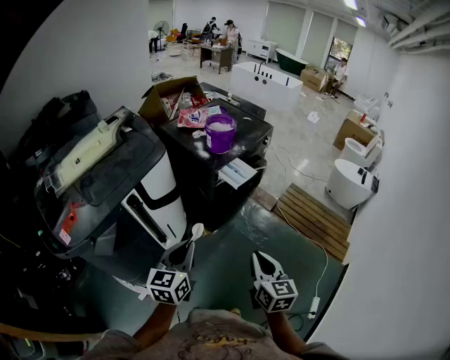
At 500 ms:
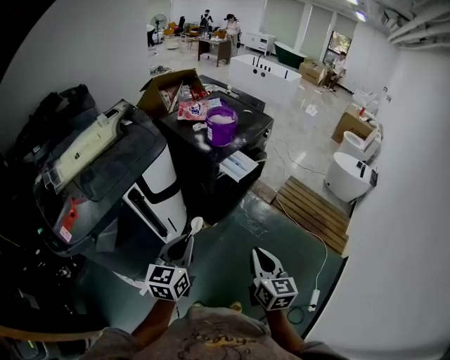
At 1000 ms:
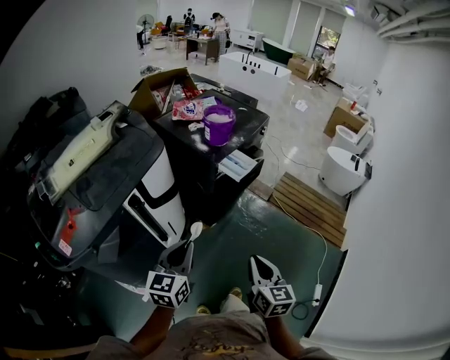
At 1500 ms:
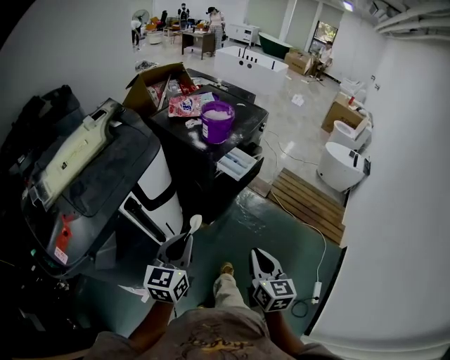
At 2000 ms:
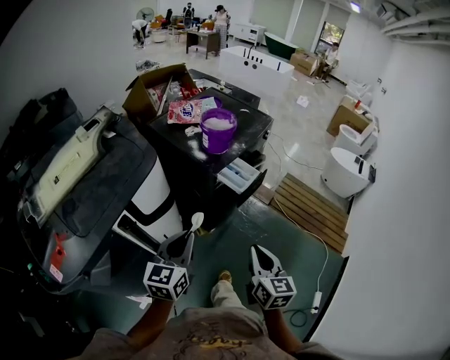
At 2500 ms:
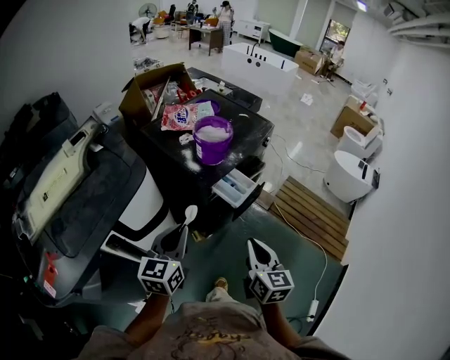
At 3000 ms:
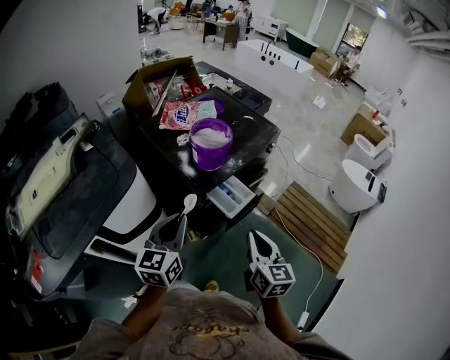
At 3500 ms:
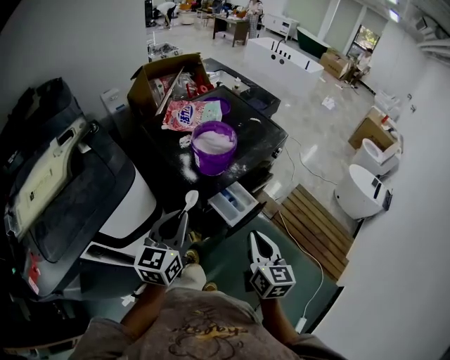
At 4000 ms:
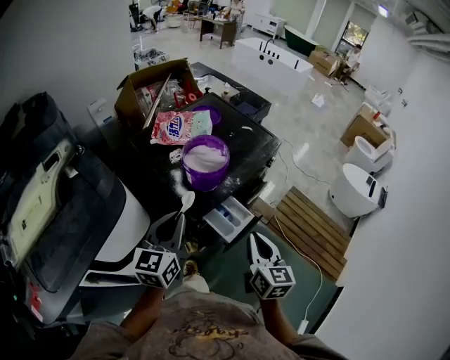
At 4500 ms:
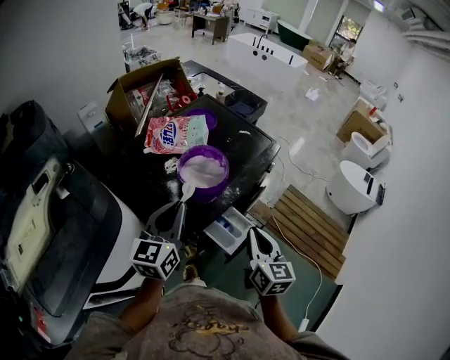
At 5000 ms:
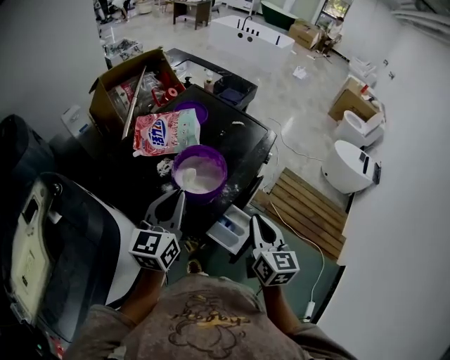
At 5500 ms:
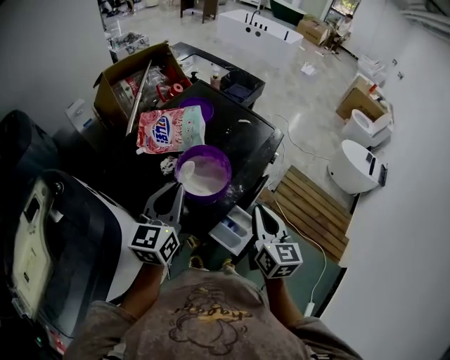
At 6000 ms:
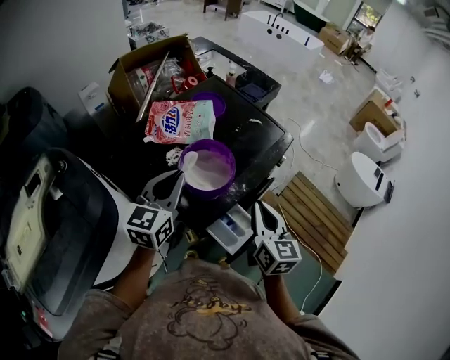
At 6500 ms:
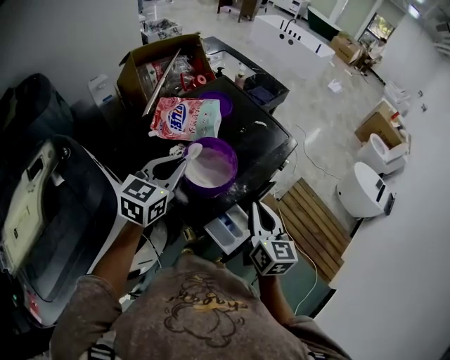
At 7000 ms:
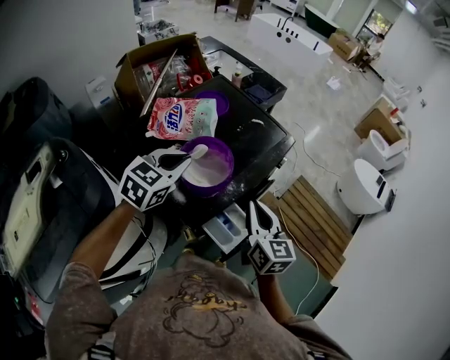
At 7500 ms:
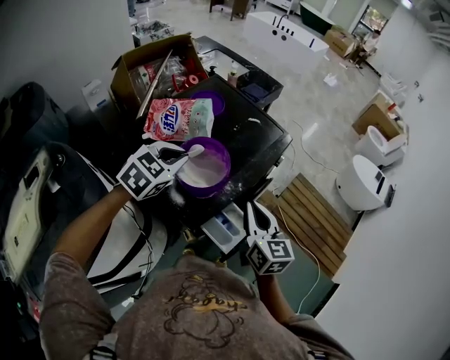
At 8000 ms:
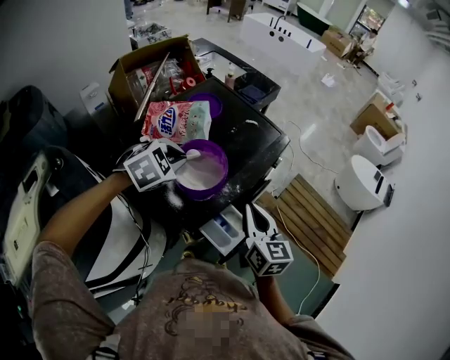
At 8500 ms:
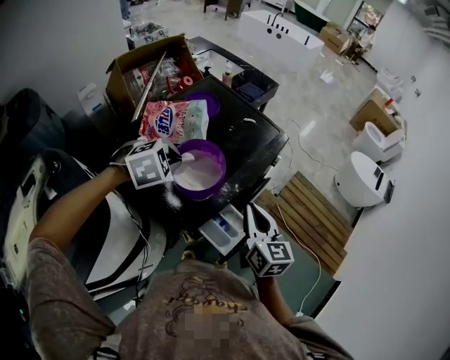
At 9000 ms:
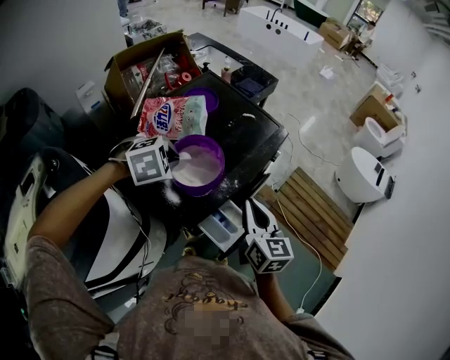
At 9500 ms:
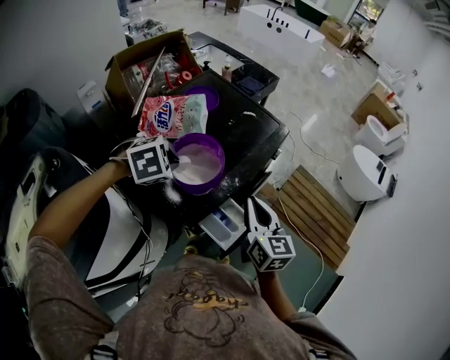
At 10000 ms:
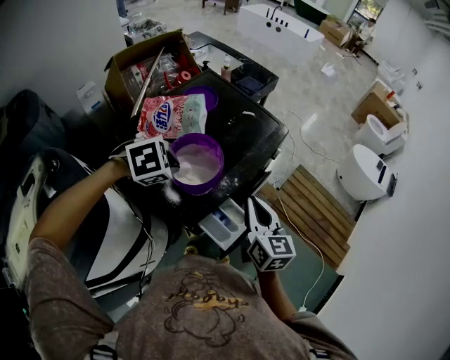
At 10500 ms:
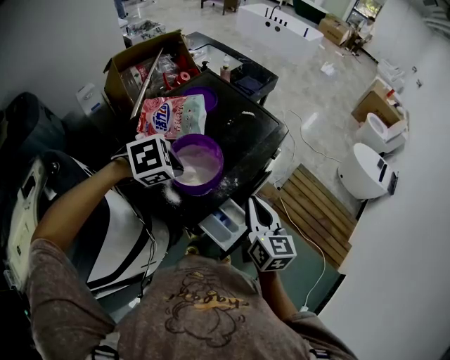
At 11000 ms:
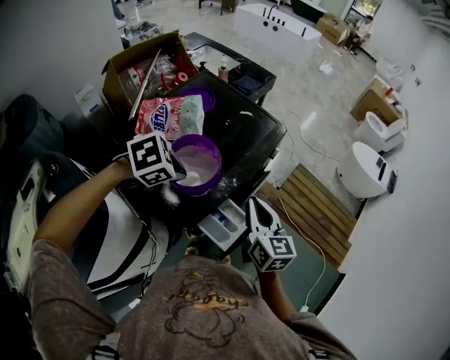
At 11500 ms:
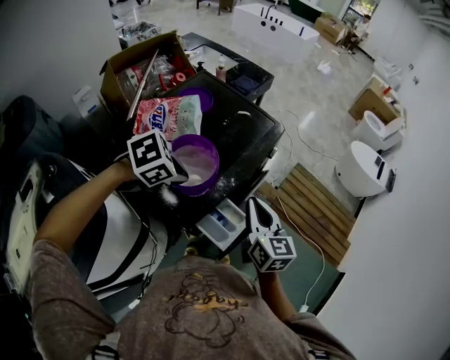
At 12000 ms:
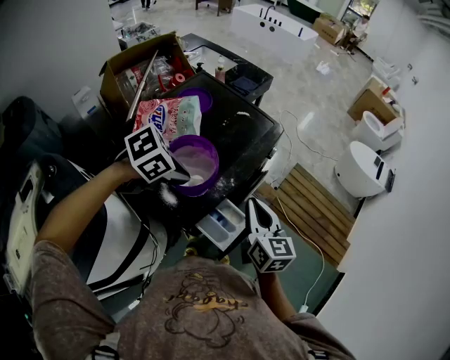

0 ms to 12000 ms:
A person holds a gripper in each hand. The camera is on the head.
0 ms to 2000 ms: The two grippers go roughly 10 cm forward.
2000 ms to 4000 ms: The two grippers go approximately 30 cm forward.
4000 ms to 6000 ms: Both grippers travel together forward, roughly 15 cm.
6000 ms to 8000 ms: The left gripper goes some 5 cm forward, and tilts its fingers approximately 40 degrees downward.
8000 ms to 10000 ms: The left gripper rotates about 20 degrees.
10000 ms to 12000 ms: The left gripper travels to the right by roughly 5 cm, and rotates some 30 degrees.

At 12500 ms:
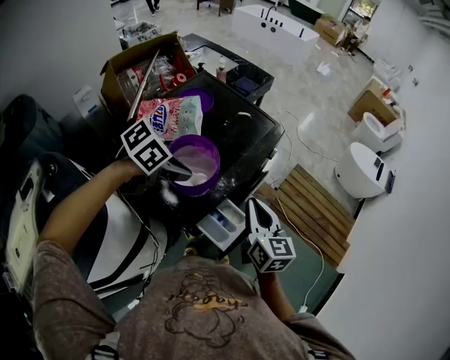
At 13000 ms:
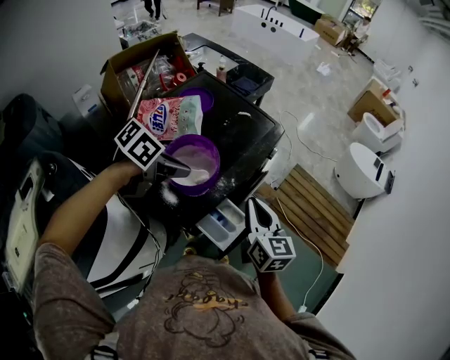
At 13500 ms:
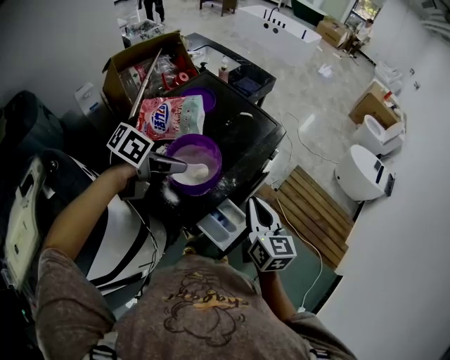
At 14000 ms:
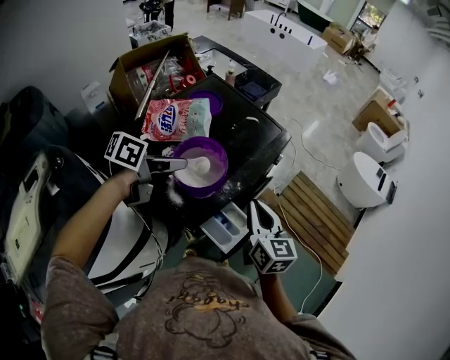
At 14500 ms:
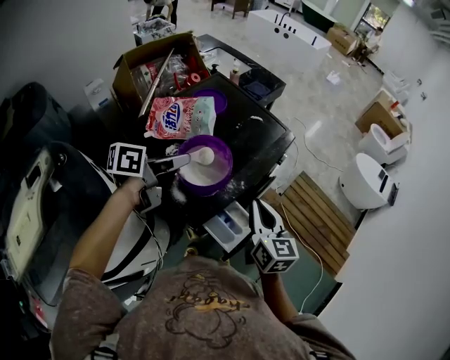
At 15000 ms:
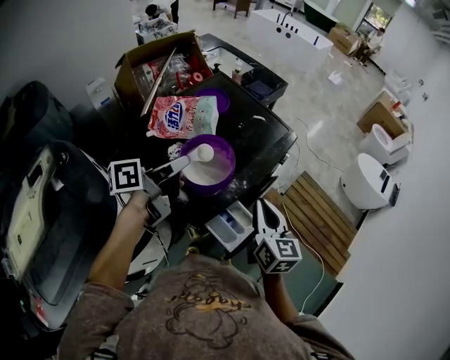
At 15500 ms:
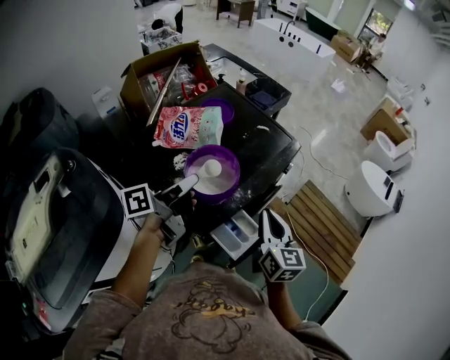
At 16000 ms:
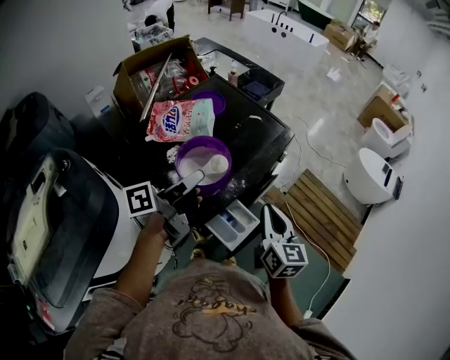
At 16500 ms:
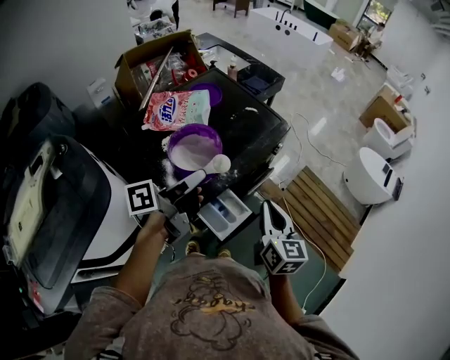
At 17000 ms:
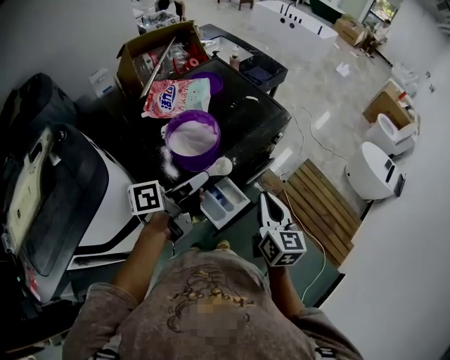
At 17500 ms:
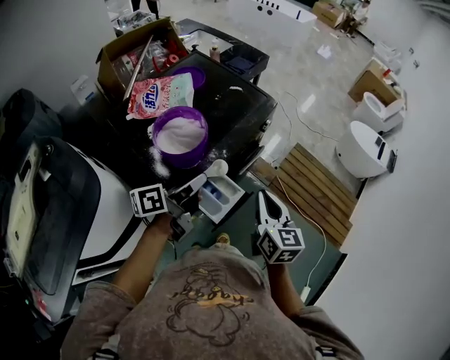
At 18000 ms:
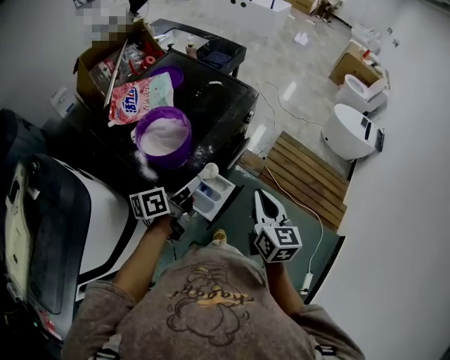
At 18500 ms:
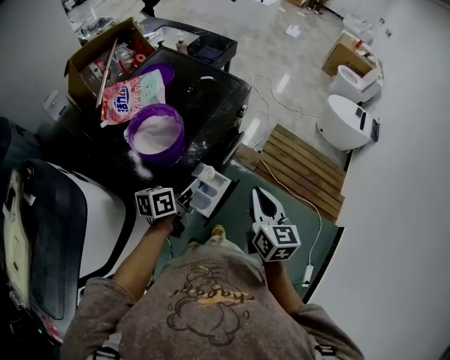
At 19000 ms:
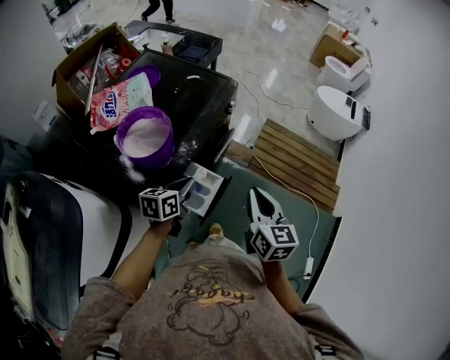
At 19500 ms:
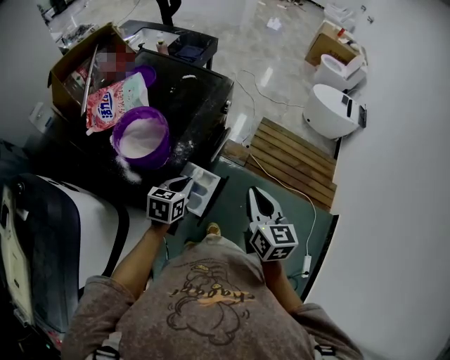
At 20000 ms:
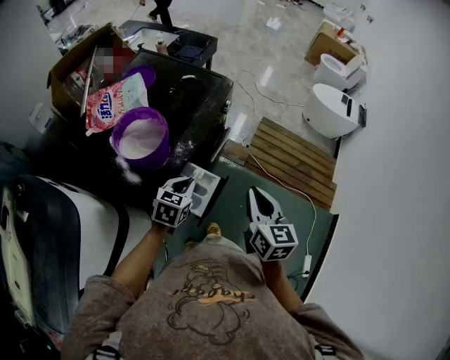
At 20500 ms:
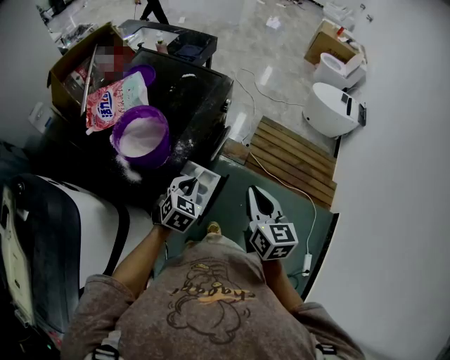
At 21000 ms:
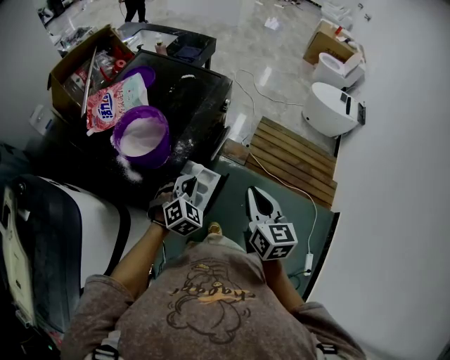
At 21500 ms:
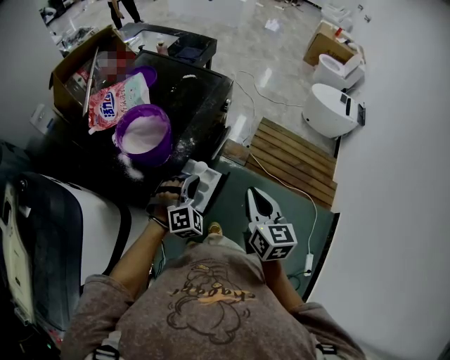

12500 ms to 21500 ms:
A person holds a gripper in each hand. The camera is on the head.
12500 ms to 14500 ms: The left gripper is displaced to the left by about 5 cm, and points its fingers about 30 degrees further upward.
14500 ms to 17000 ms: The right gripper goes some 10 cm to the right; the left gripper heads to the right and backward, covering some 15 cm.
17000 ms to 19500 ms: The left gripper goes roughly 15 cm downward, and rolls clockwise, seen from behind, by about 50 degrees; the right gripper moves to the right, roughly 10 cm.
19500 ms to 21500 ms: The left gripper rotates around the line of its fingers by some 70 degrees, clockwise from behind.

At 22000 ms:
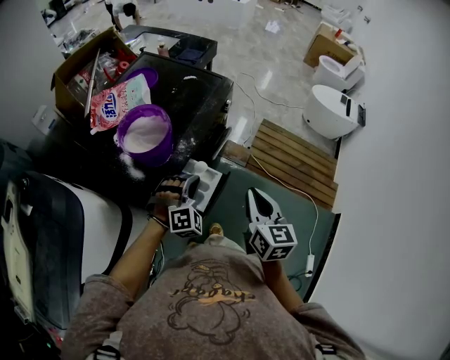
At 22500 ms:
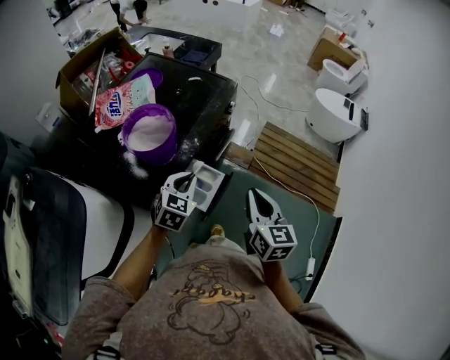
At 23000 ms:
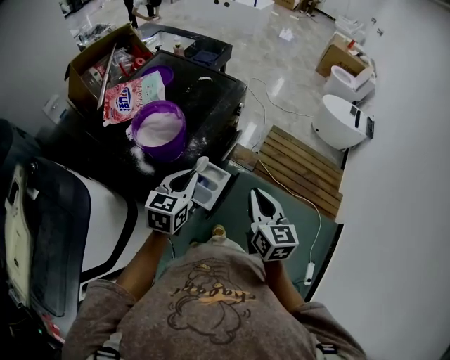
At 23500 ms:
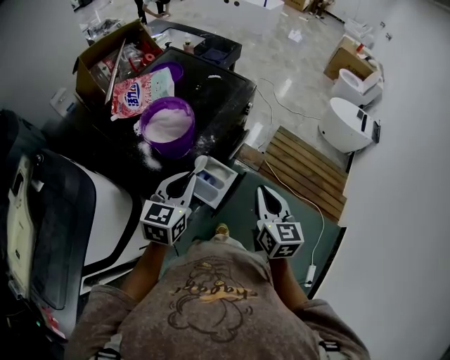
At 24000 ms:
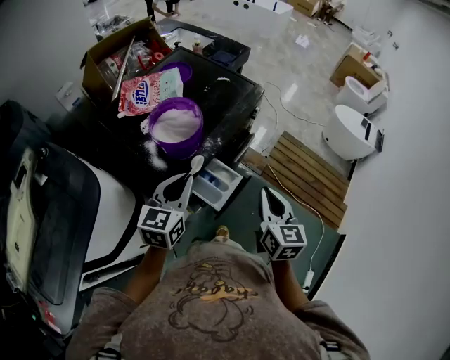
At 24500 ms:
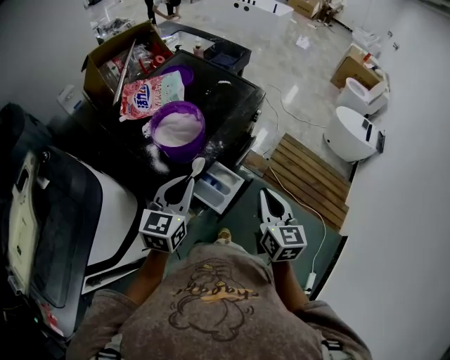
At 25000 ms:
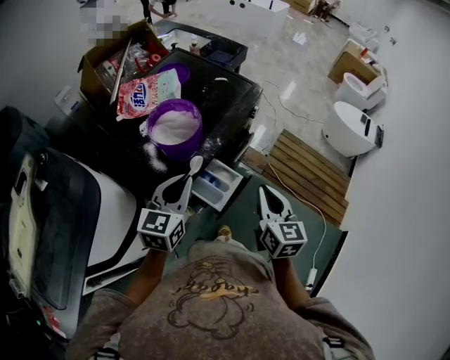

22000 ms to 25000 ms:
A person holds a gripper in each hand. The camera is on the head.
22000 ms to 23500 ms: The left gripper moves upward and to the left, some 15 cm, and rolls counterclockwise, seen from behind, by some 70 degrees.
23500 ms to 25000 ms: The grippers stay close to where they were, moving slightly.

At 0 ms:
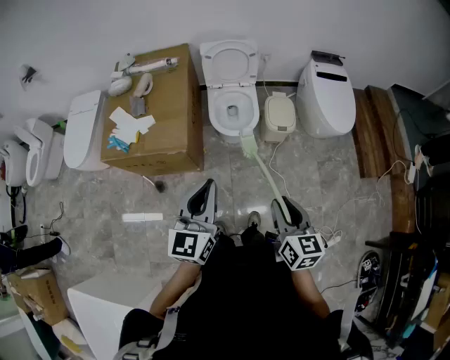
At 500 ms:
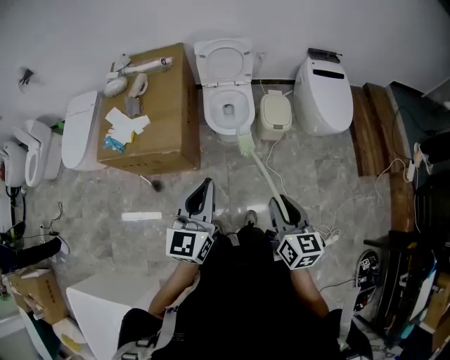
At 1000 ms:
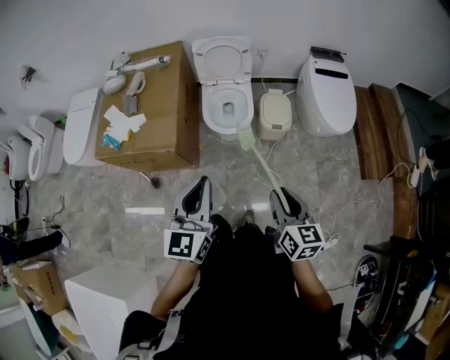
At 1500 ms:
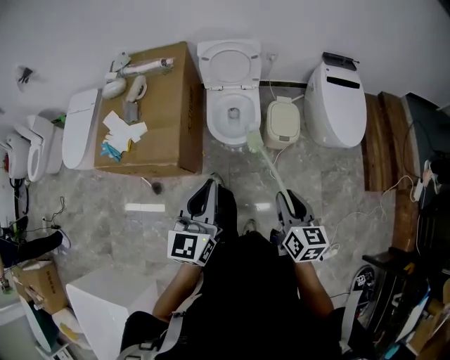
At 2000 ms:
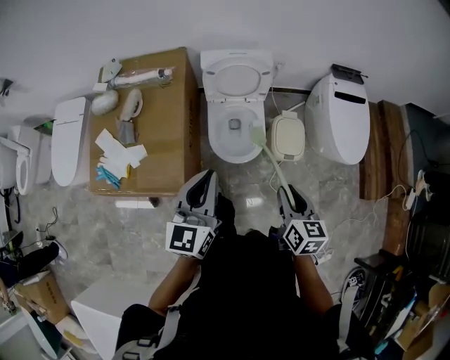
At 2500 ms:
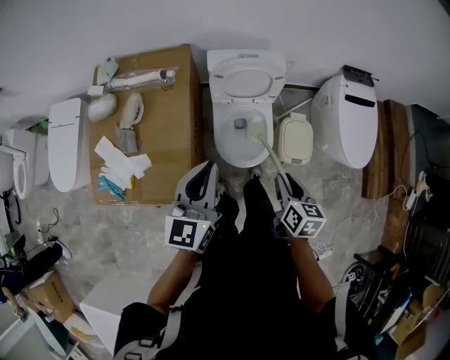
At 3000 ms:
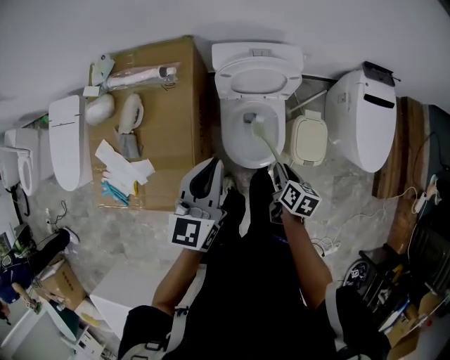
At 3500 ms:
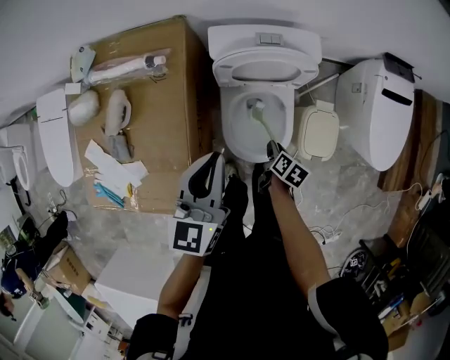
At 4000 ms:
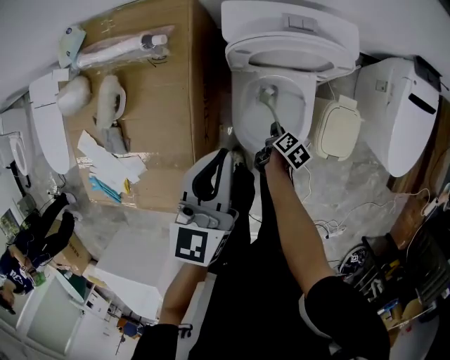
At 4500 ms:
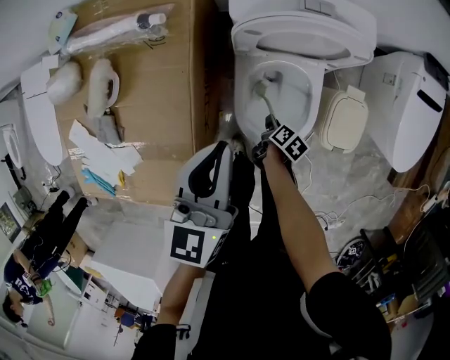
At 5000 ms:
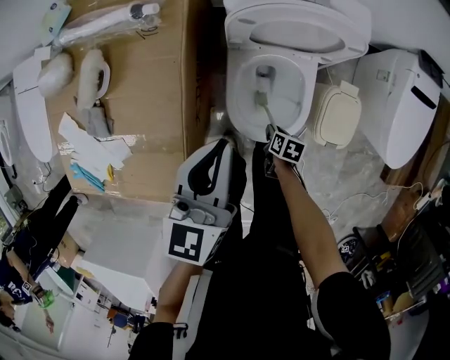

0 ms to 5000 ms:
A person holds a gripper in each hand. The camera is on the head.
0 ms to 2500 ms: The pair of grippers is taken forward, approximately 50 cm.
2500 ms to 5000 ms: The left gripper heads downward and forward, covering approximately 25 cm. Meanwhile the right gripper shifts some 50 cm downward, and tilts its fingers about 30 degrees downward.
